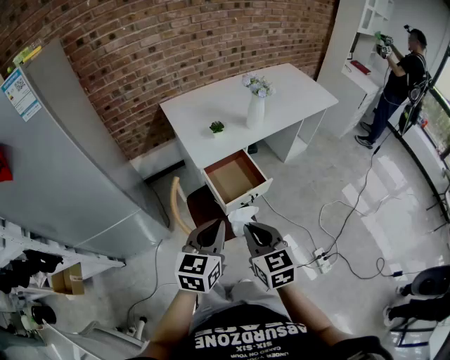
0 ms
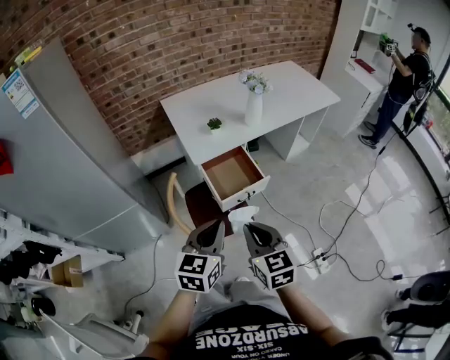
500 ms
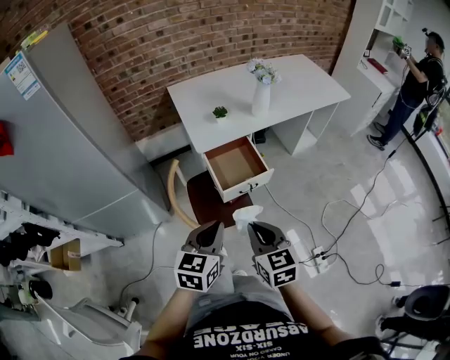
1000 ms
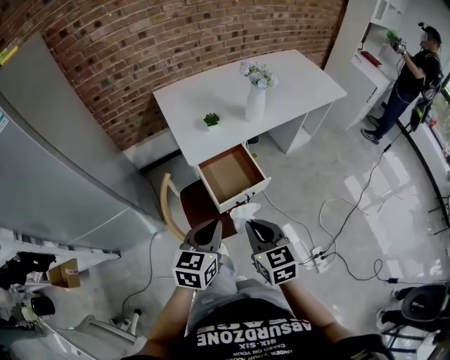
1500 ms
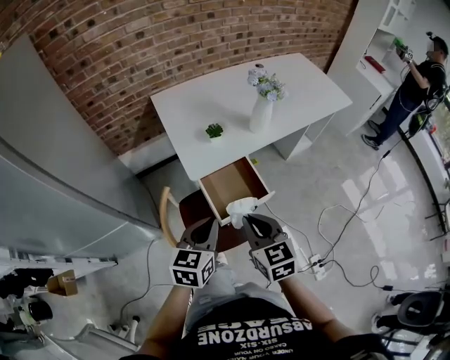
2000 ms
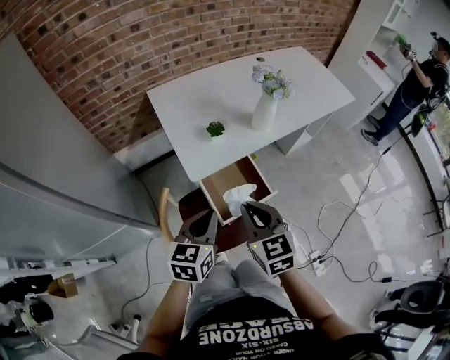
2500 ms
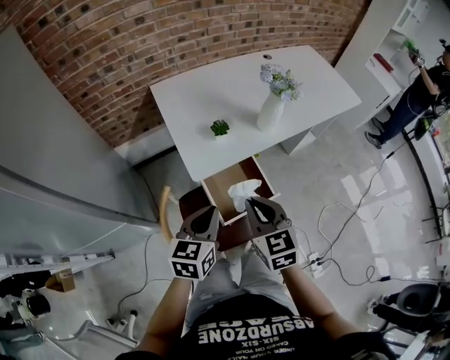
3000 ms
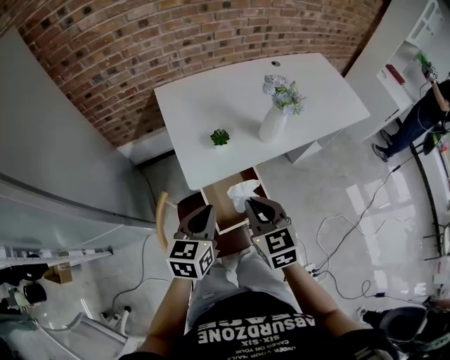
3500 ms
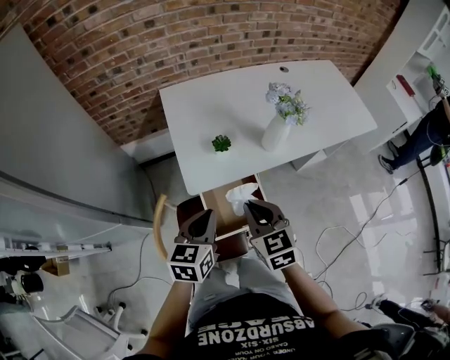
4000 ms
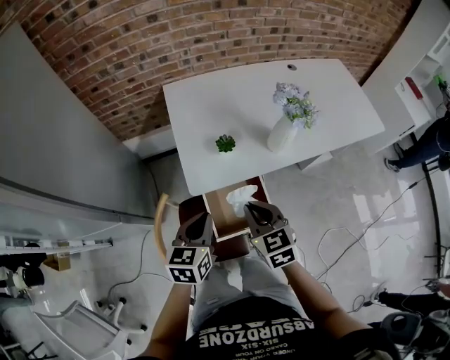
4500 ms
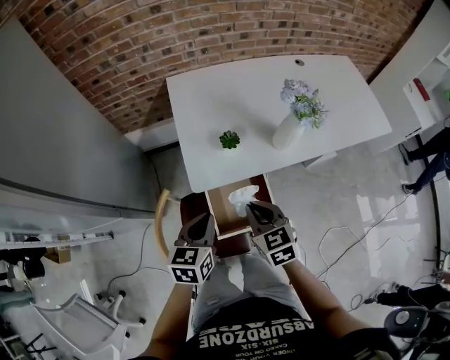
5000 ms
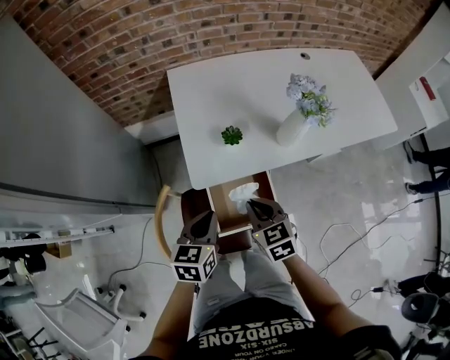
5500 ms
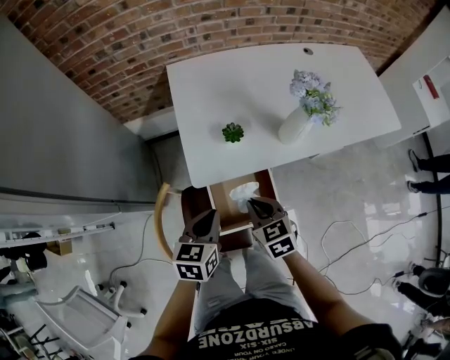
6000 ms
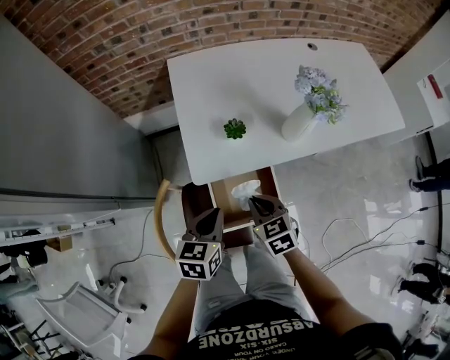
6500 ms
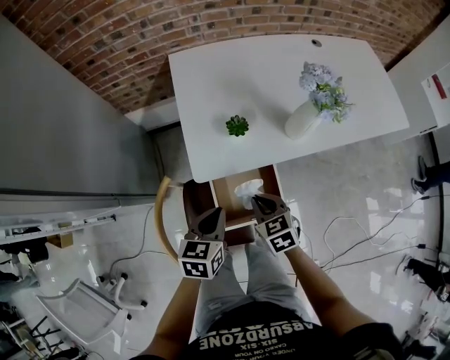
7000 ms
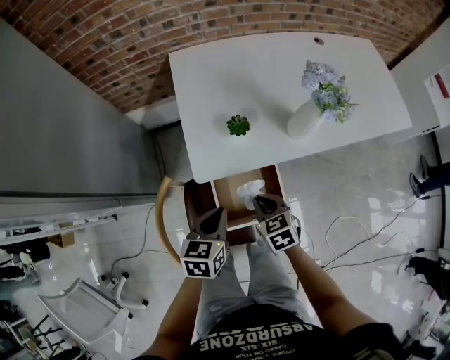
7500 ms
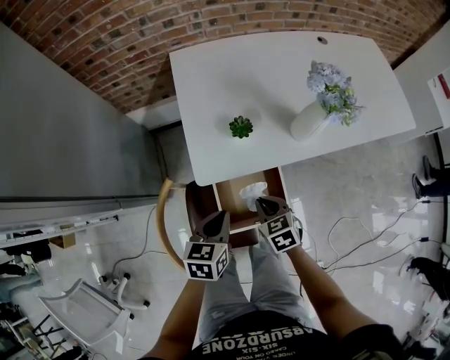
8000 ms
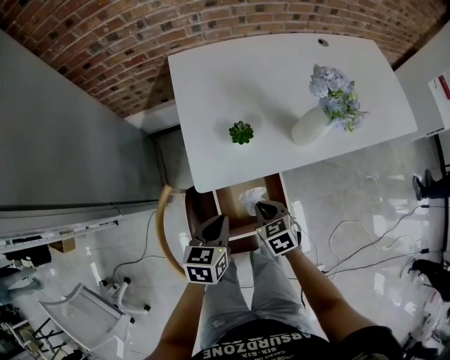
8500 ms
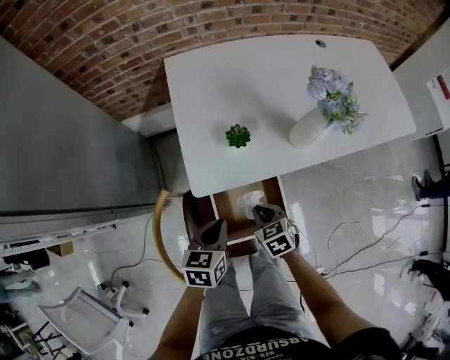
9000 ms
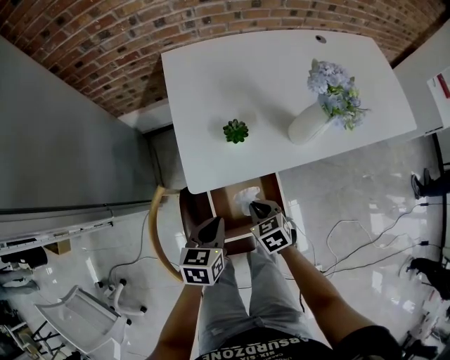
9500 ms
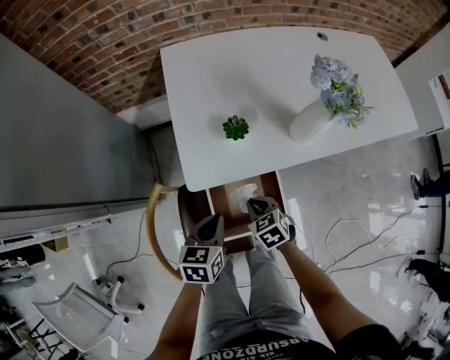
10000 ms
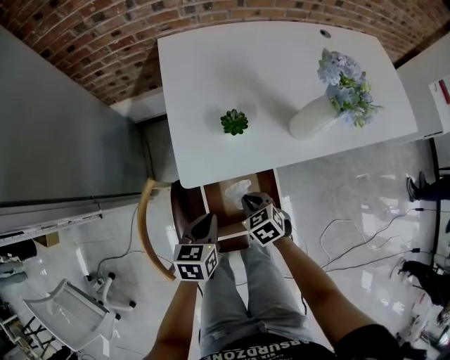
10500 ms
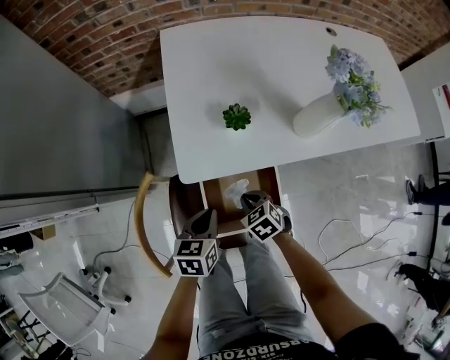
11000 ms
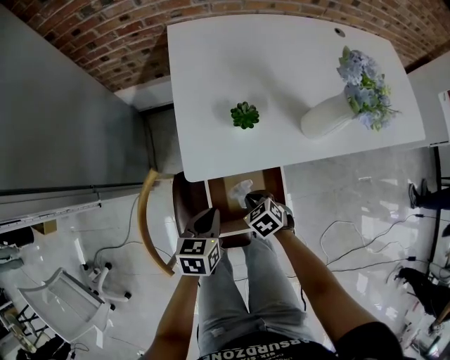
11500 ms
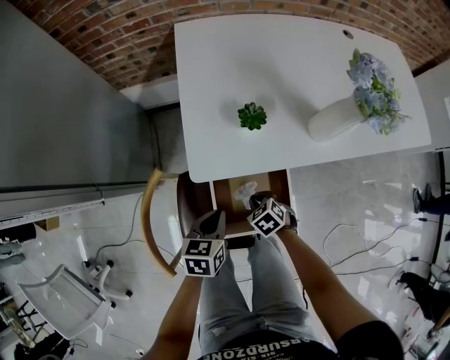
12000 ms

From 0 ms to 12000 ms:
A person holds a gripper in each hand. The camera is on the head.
From 0 ms to 2000 ms: The left gripper heads forward and downward, covering some 15 cm. Meanwhile the right gripper moves forward, about 15 cm.
From 2000 ms to 4000 ms: Both grippers travel together forward, about 15 cm.
From 4000 ms to 6000 ms: The left gripper travels downward by roughly 5 cm, while the right gripper is displaced downward by some 10 cm.
From 6000 ms to 8000 ms: The right gripper heads downward, covering roughly 10 cm. Meanwhile the left gripper is displaced downward by roughly 5 cm.
From 8000 ms to 10000 ms: The two grippers go about 5 cm downward.
From 10000 ms to 12000 ms: The left gripper goes roughly 5 cm downward; the right gripper moves downward, approximately 10 cm.

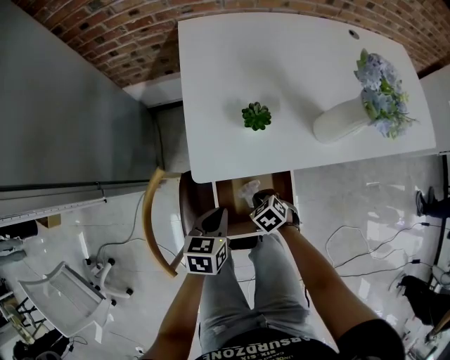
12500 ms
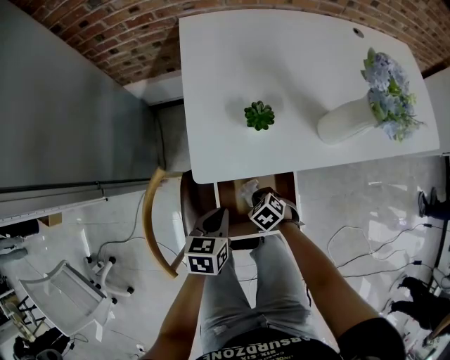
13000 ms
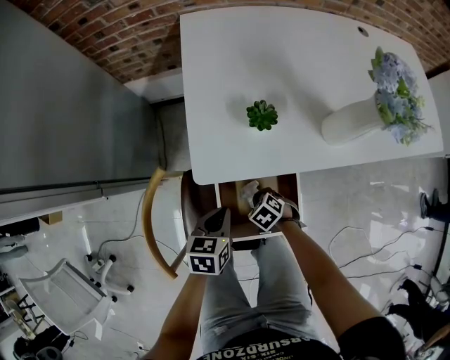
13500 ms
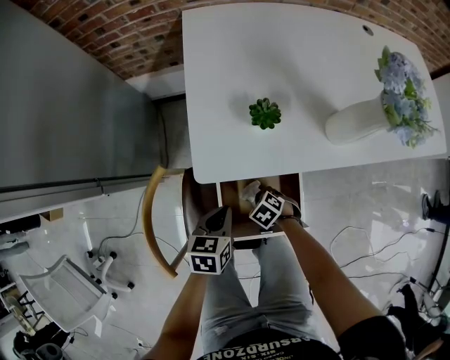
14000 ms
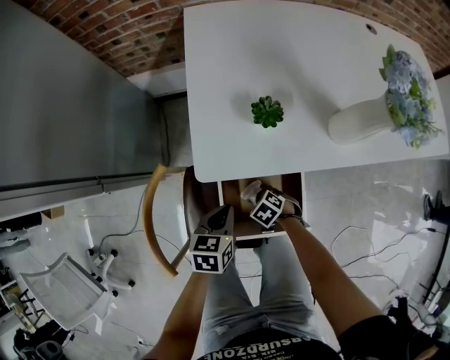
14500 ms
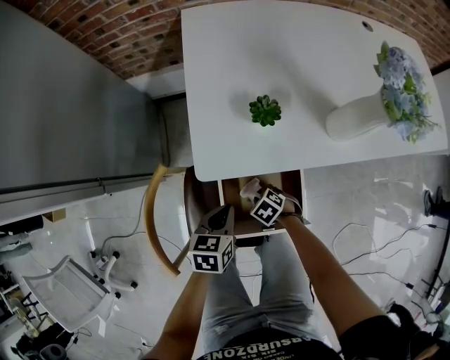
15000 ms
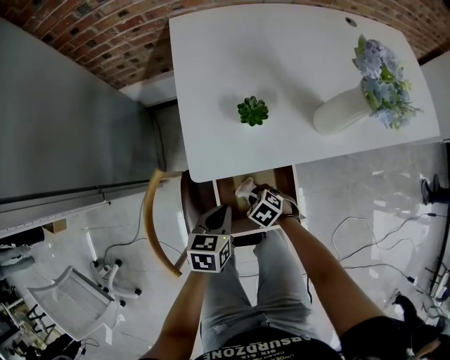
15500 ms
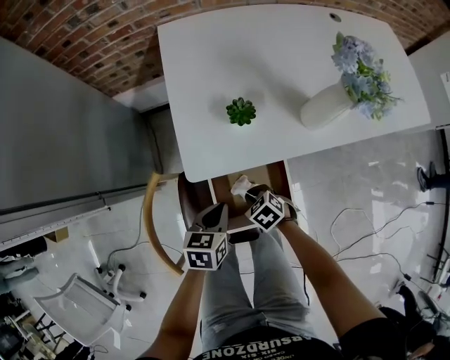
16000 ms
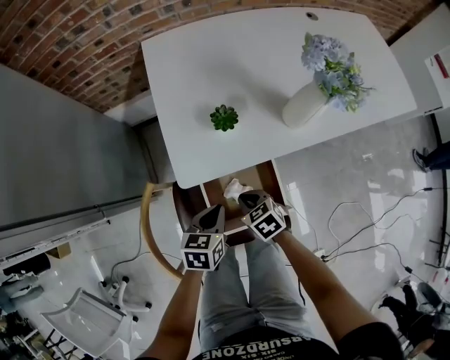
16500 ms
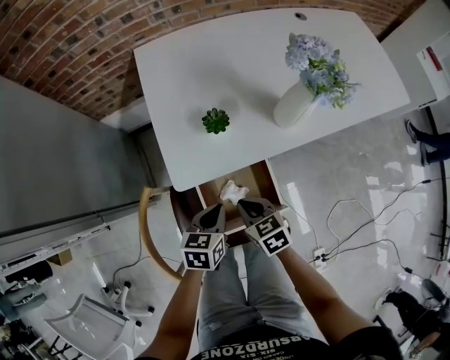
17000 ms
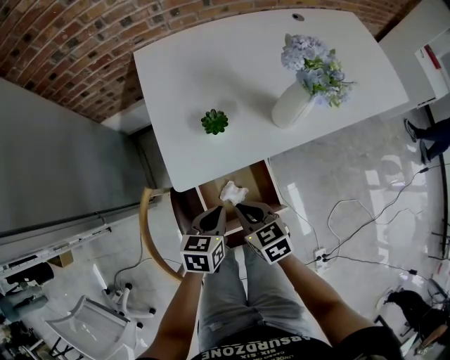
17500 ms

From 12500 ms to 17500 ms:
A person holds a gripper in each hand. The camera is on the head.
From 12500 ms to 15000 ms: The right gripper goes approximately 5 cm downward.
From 15000 ms to 17500 ms: The left gripper goes some 10 cm upward; the right gripper is displaced upward by about 25 cm, and tips its fingers upward by roughly 30 degrees.

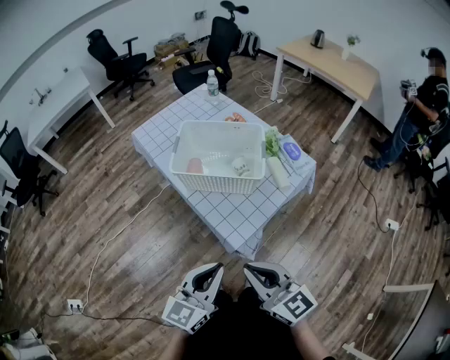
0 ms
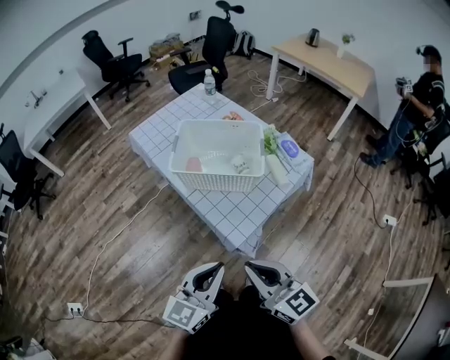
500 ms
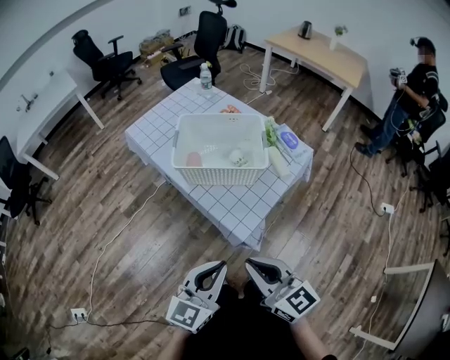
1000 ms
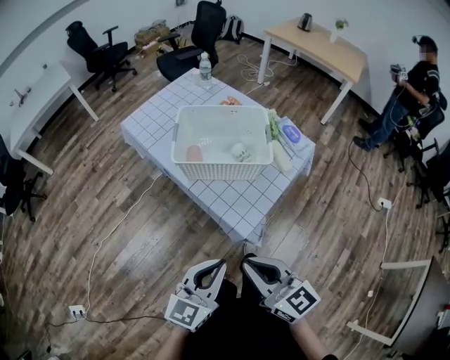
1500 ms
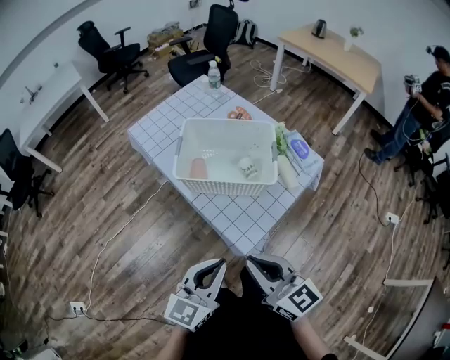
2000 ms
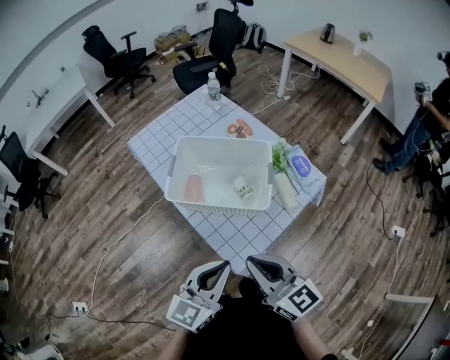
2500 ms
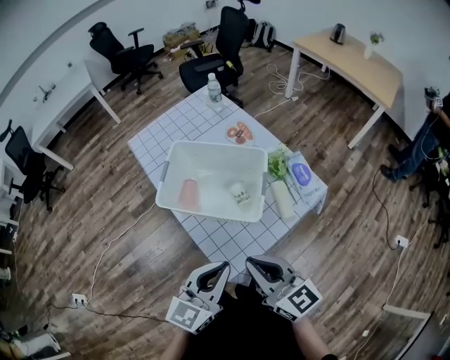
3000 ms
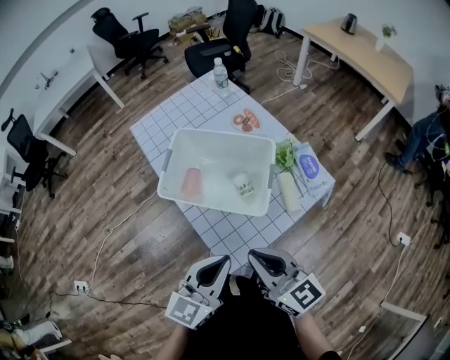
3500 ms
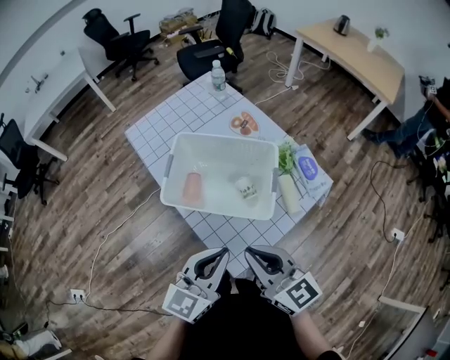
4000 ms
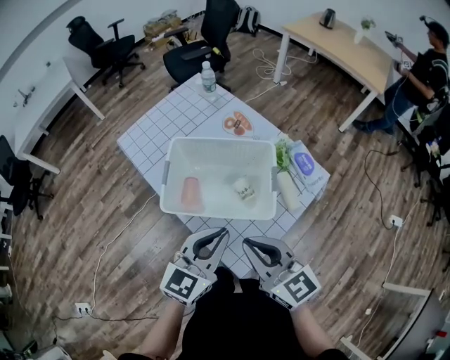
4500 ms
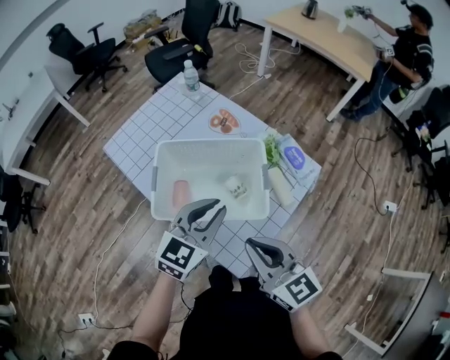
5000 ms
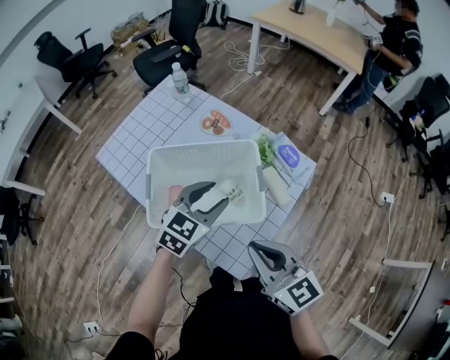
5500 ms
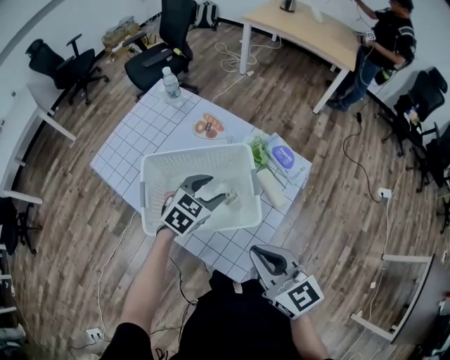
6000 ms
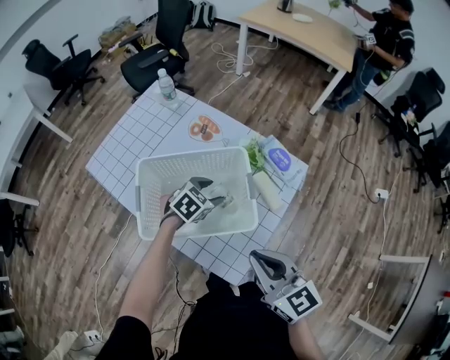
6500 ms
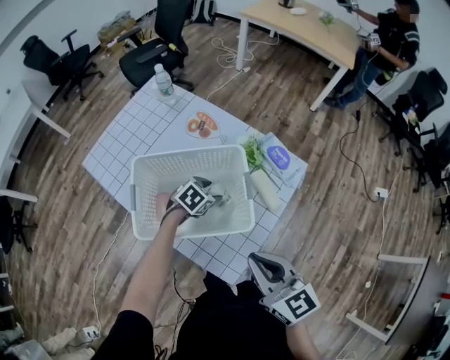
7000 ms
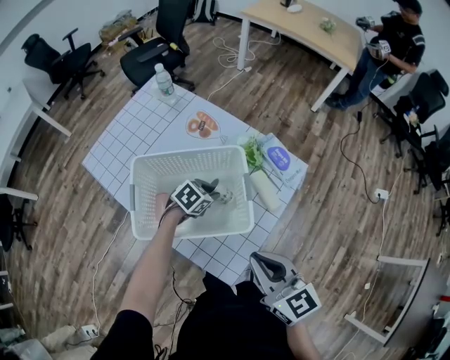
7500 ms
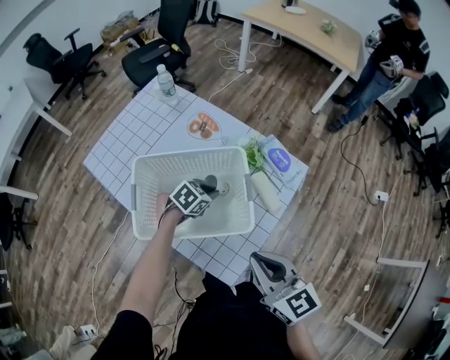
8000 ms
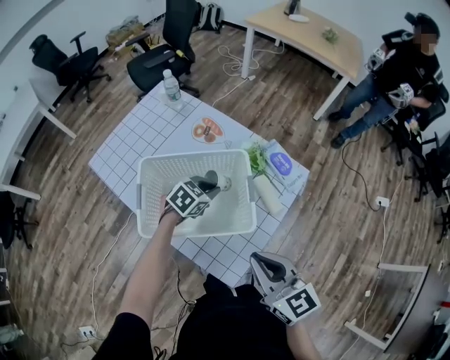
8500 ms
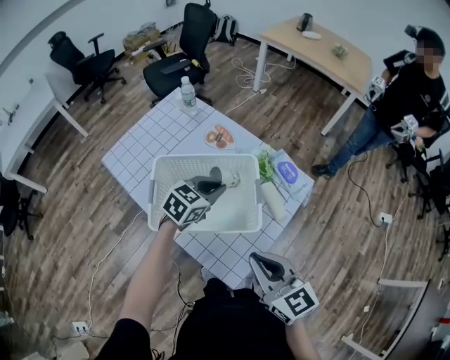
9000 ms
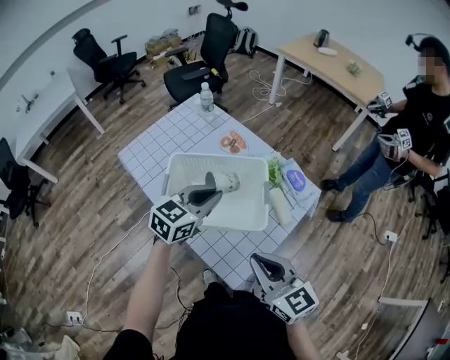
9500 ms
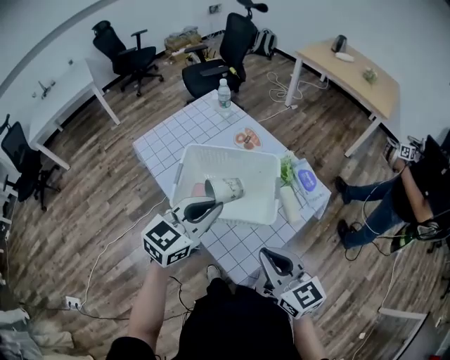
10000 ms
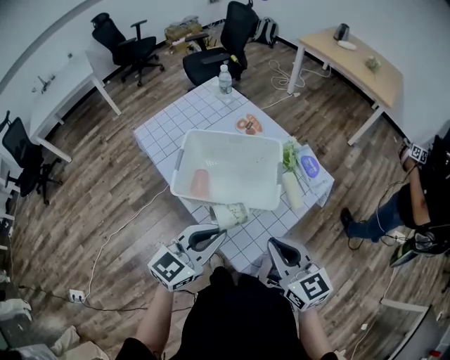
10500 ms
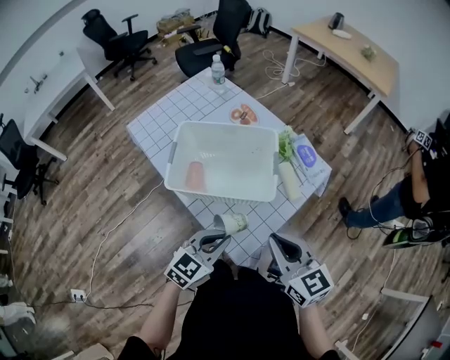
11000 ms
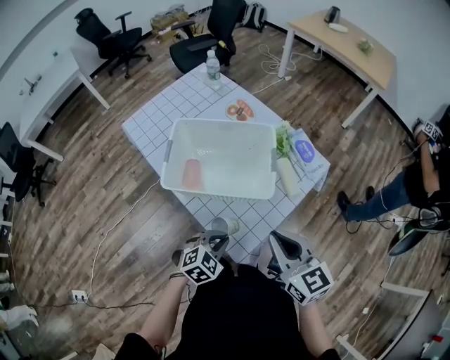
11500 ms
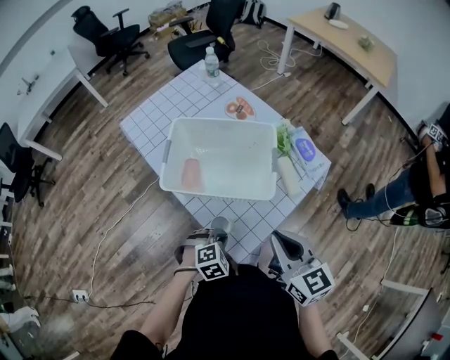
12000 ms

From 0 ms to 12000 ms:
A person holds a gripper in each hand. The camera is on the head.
From 0 ms to 2000 ms: The grippers both shift forward by roughly 5 cm.
From 2000 ms to 4000 ms: Both grippers travel together forward and to the right, approximately 15 cm.
From 4000 ms to 6000 ms: The left gripper travels forward and downward by about 25 cm, points its fingers some 30 degrees further downward, and opens; the right gripper turns by approximately 20 degrees.
From 6000 ms to 8000 ms: The left gripper moves downward, roughly 10 cm, swivels approximately 20 degrees, and closes.
From 8000 ms to 10000 ms: The left gripper shifts approximately 30 cm upward and backward, and angles its fingers upward, by roughly 40 degrees.
From 10000 ms to 12000 ms: The right gripper moves some 5 cm, while the left gripper shifts about 30 cm downward and backward, and points its fingers about 50 degrees further downward.
